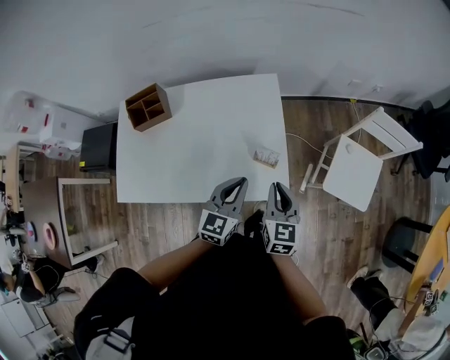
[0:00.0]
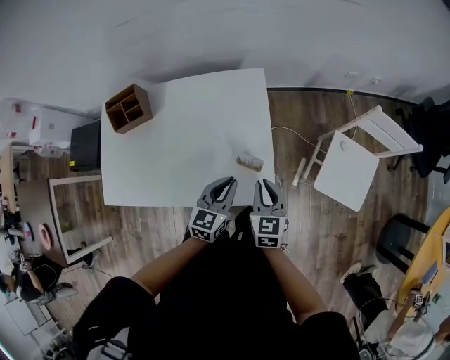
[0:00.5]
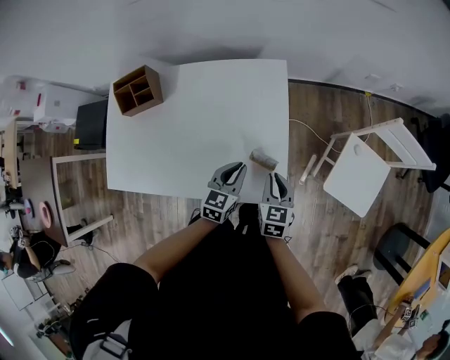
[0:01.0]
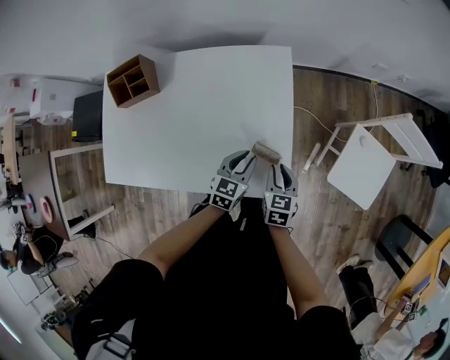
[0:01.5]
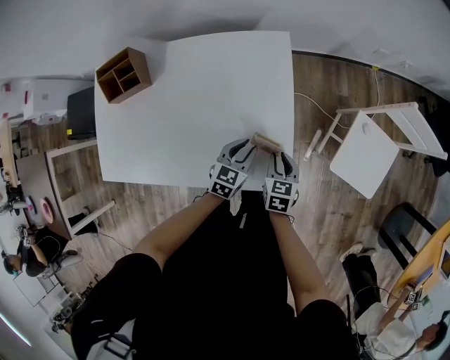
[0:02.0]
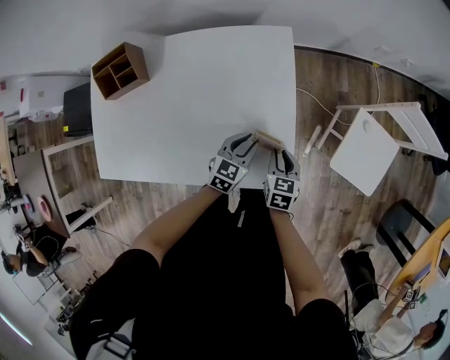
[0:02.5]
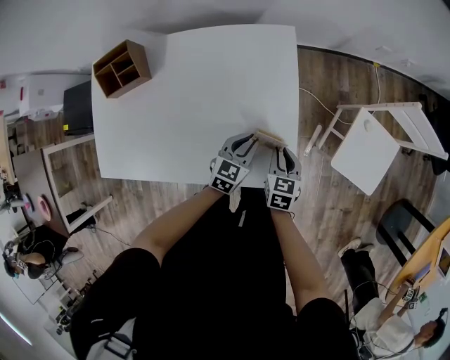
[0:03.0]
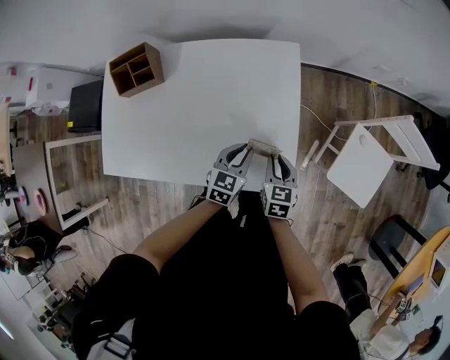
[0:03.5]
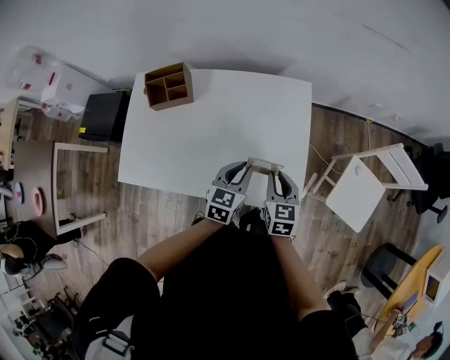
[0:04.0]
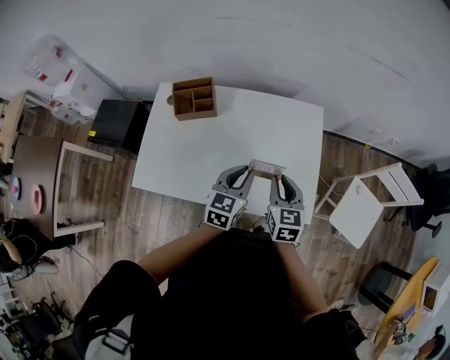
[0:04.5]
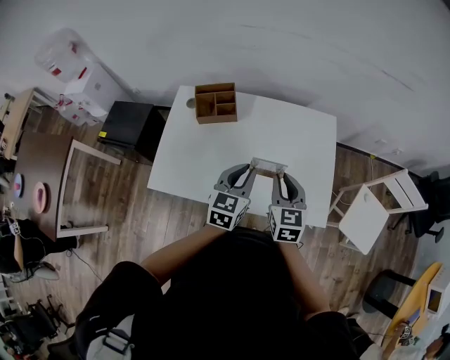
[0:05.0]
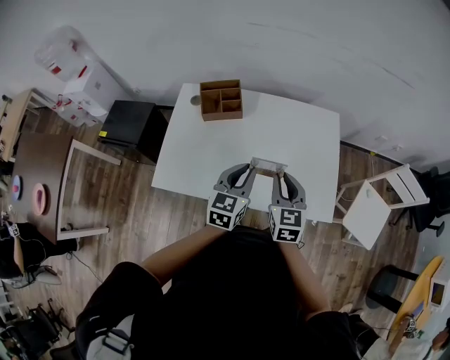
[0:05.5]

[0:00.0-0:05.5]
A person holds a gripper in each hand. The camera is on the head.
0:00.0 to 0:02.0: The left gripper travels downward and forward by some 25 cm, and turns by about 20 degrees. The right gripper moves downward, approximately 20 cm, and swivels roughly 20 degrees.
0:02.0 to 0:03.5: Both grippers move upward, roughly 5 cm.
0:03.5 to 0:05.5: Both grippers travel together to the left and upward, some 35 cm. The left gripper swivels about 20 degrees, while the right gripper turns by about 20 degrees.

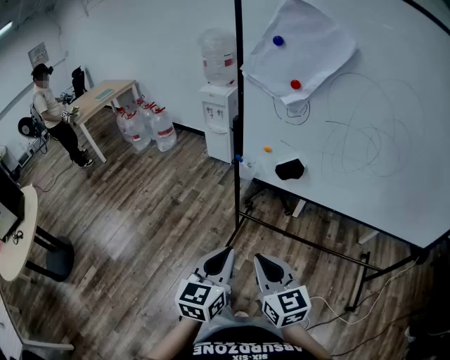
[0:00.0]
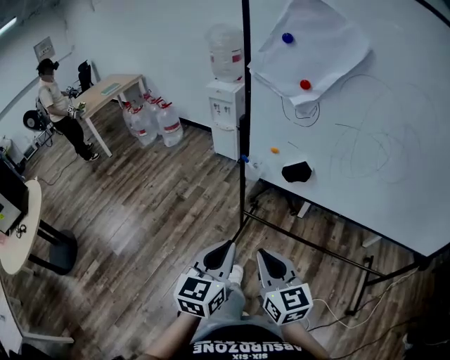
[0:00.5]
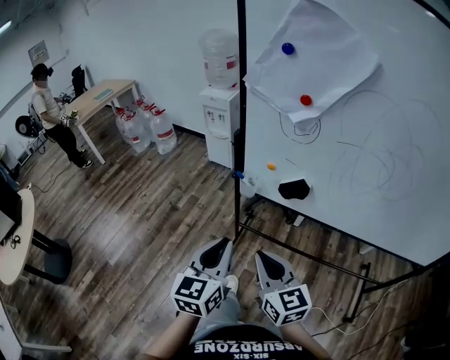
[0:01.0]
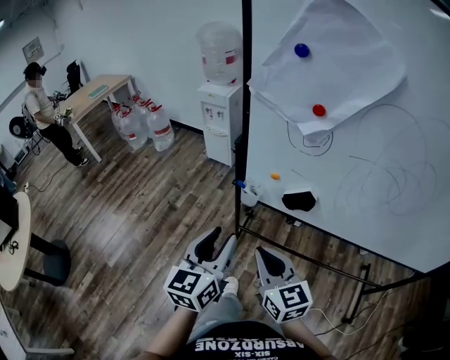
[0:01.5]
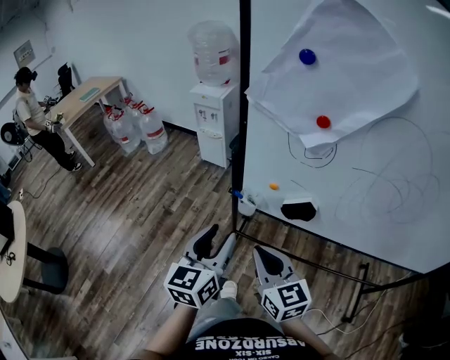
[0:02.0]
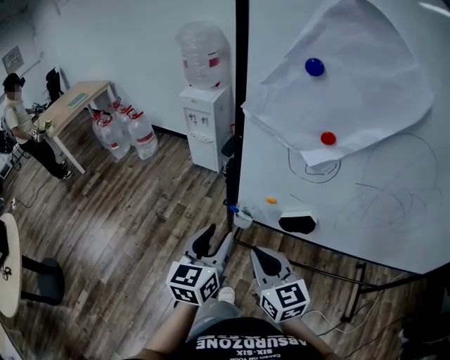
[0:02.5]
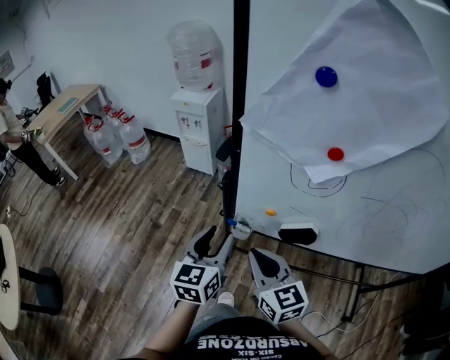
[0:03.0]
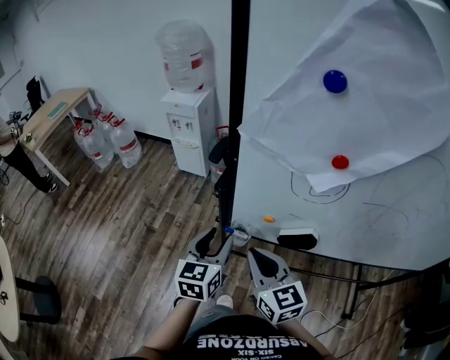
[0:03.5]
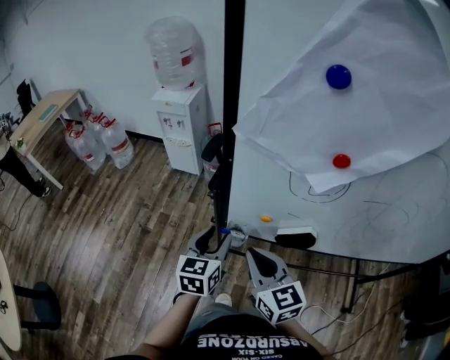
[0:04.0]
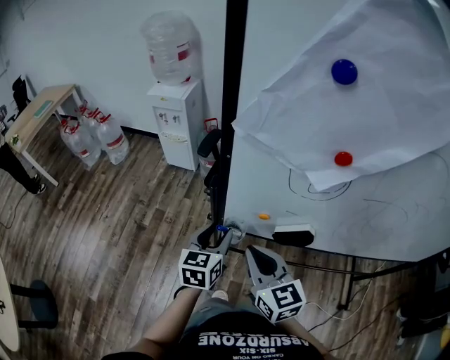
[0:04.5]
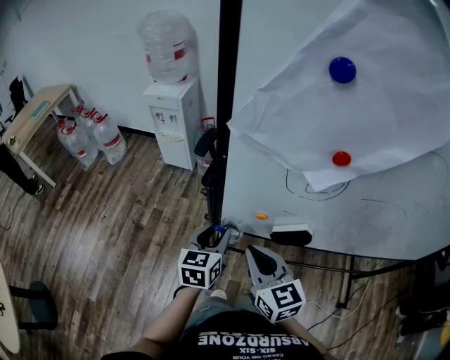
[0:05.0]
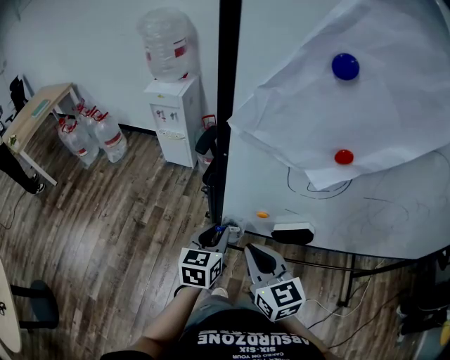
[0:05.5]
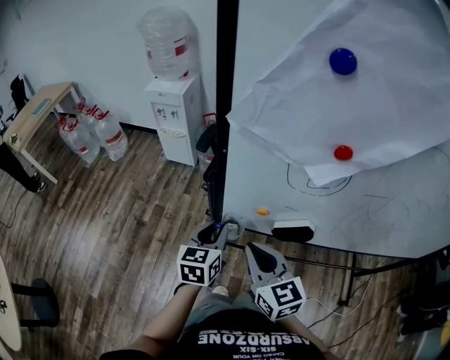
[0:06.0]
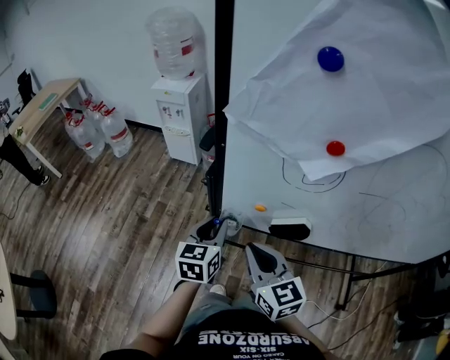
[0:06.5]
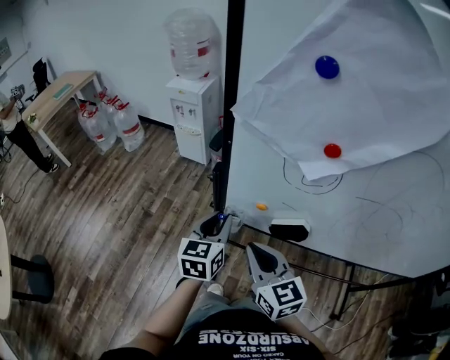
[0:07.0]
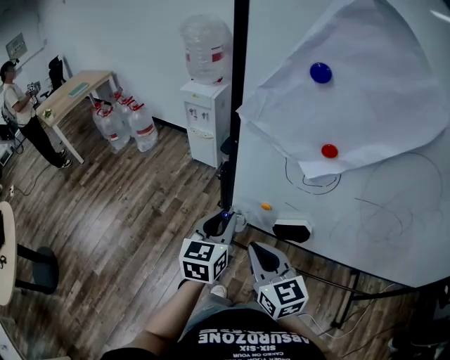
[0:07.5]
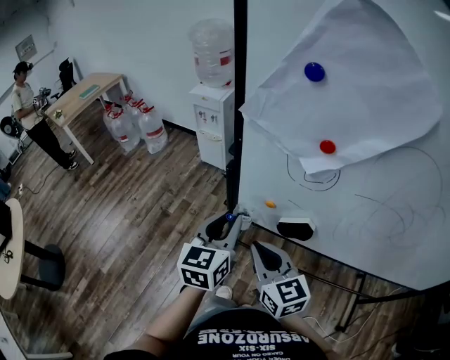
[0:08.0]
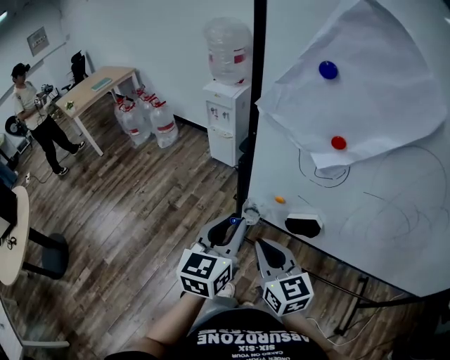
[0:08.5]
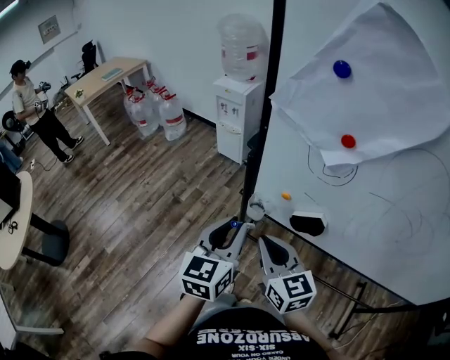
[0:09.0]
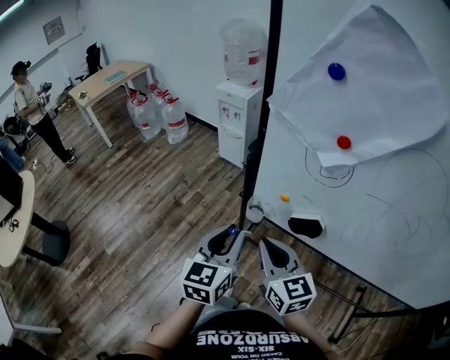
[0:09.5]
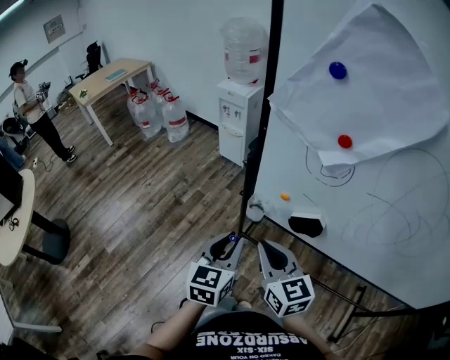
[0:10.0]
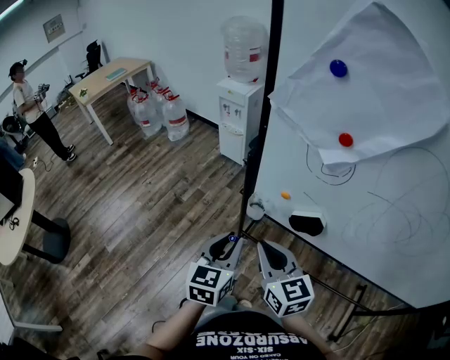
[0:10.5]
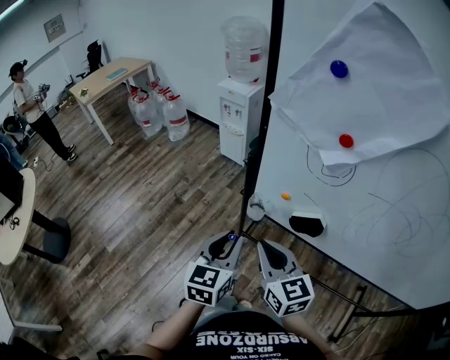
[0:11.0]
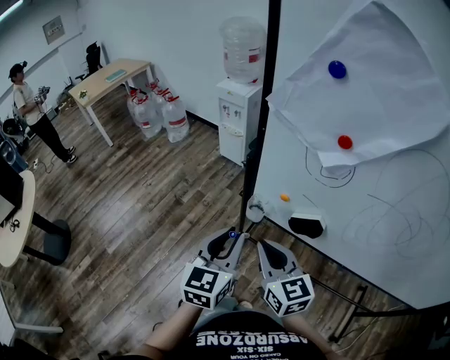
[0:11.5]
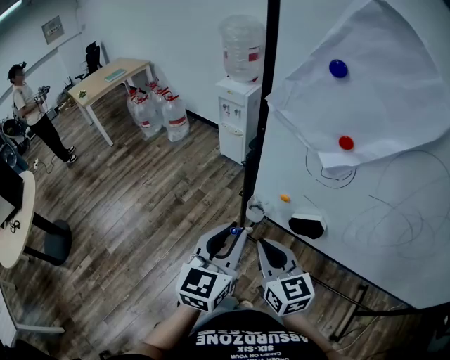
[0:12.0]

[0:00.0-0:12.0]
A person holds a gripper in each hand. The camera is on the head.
0:00.0 to 0:02.0: The two grippers go roughly 20 cm forward. The left gripper opens its fingers.
0:02.0 to 0:04.0: The right gripper heads forward, covering about 15 cm, while the left gripper shifts some 20 cm forward and downward.
0:04.0 to 0:06.0: The grippers make only small movements.
0:06.0 to 0:08.0: The right gripper heads backward, covering roughly 5 cm. The left gripper heads upward and backward, covering some 15 cm.
0:08.0 to 0:10.0: The left gripper goes about 10 cm backward and downward.
0:10.0 to 0:12.0: The left gripper shifts about 10 cm upward.

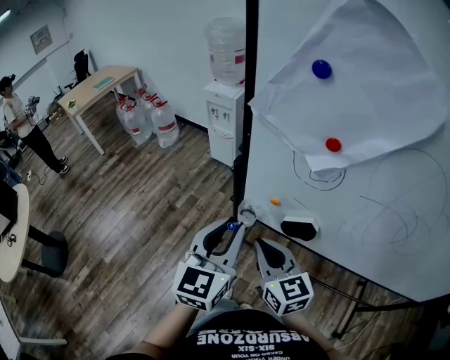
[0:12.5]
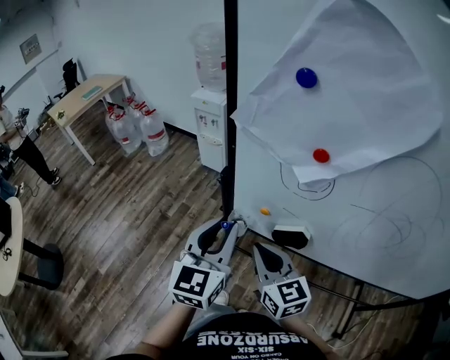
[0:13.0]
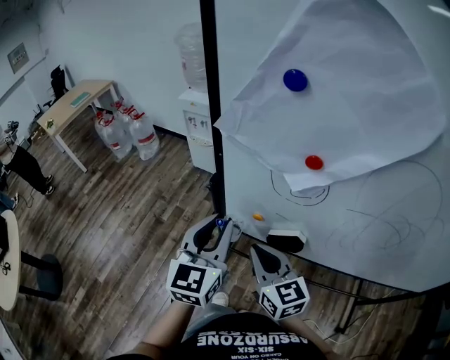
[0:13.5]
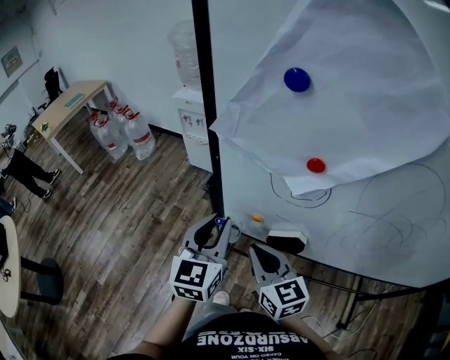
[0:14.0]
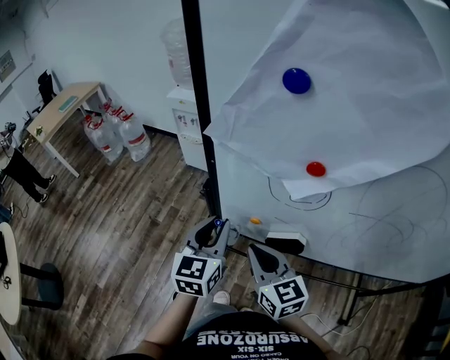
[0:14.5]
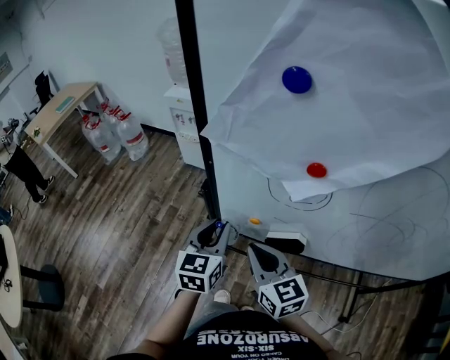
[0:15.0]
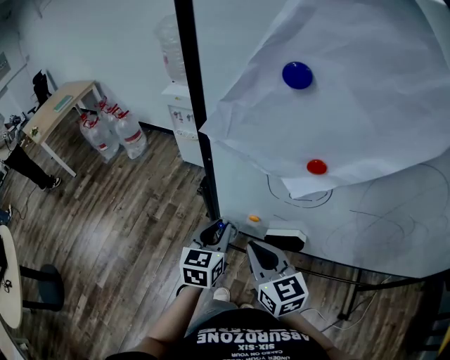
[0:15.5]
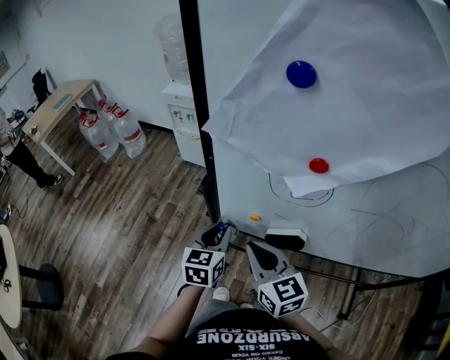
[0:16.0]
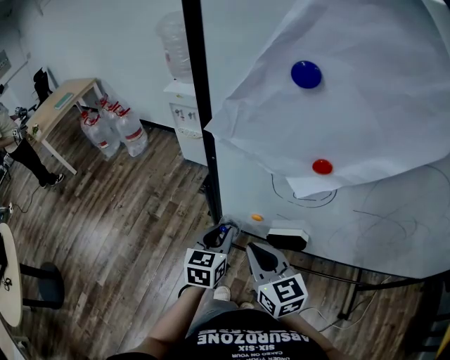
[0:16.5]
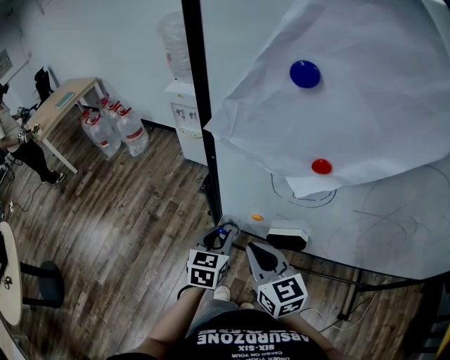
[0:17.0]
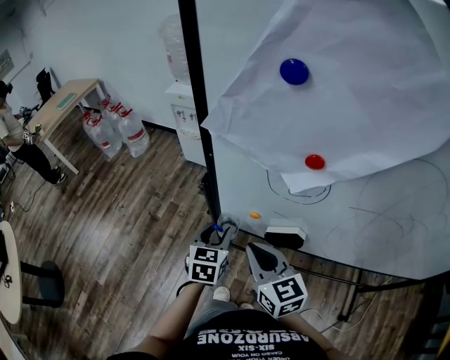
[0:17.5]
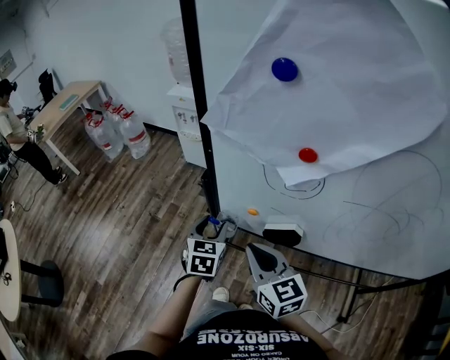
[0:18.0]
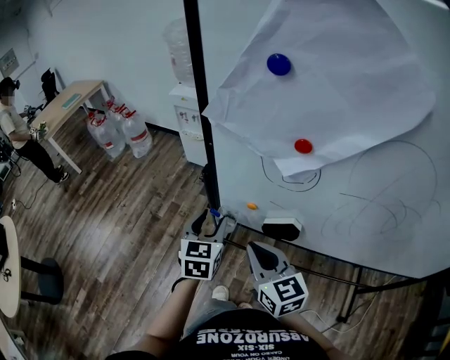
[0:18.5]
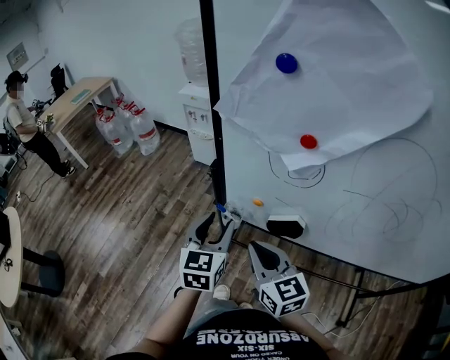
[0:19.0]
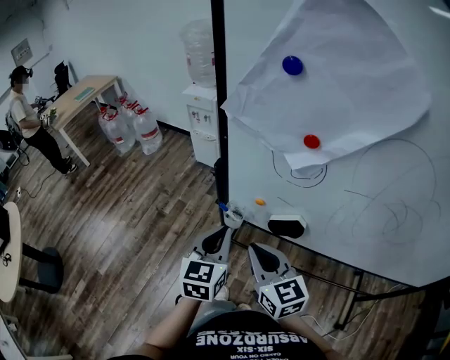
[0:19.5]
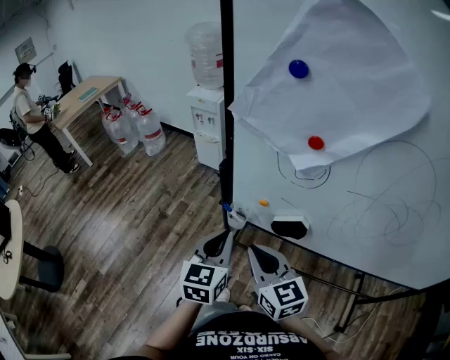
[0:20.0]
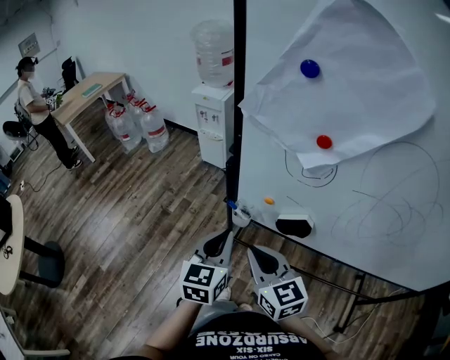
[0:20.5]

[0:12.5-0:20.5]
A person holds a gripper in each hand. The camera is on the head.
0:12.5 to 0:14.5: The left gripper shifts some 15 cm forward and downward. The right gripper travels forward by about 5 cm.
0:14.5 to 0:16.5: The left gripper goes about 10 cm downward.
0:16.5 to 0:18.5: The left gripper shifts by some 5 cm, and opens up.
0:18.5 to 0:20.5: The right gripper shifts by roughly 5 cm; the left gripper moves backward, approximately 10 cm, and closes.

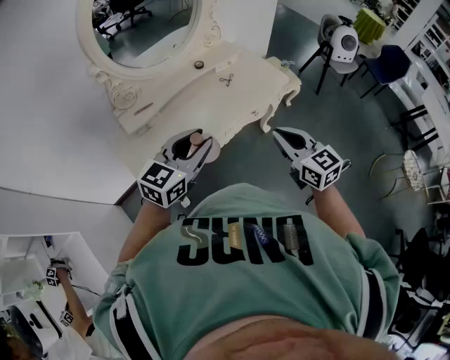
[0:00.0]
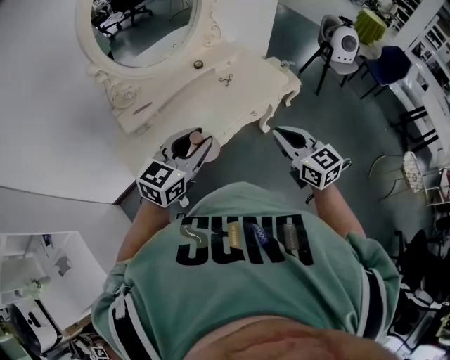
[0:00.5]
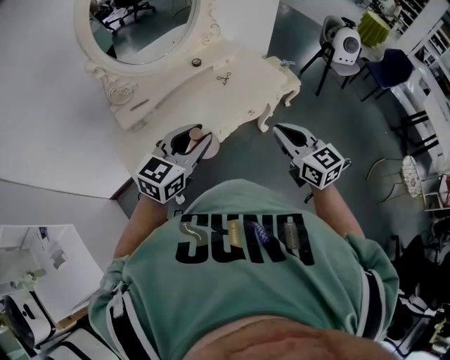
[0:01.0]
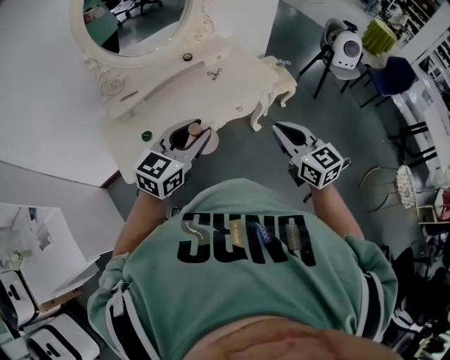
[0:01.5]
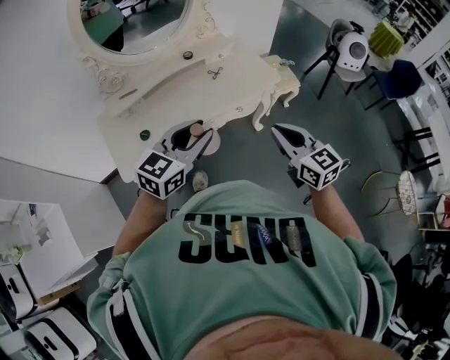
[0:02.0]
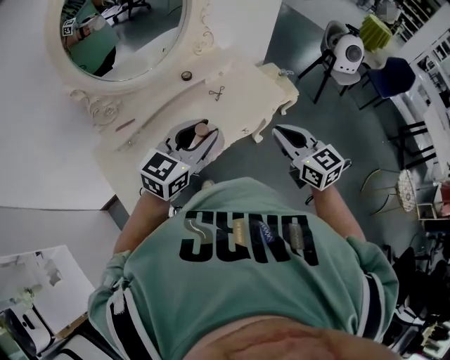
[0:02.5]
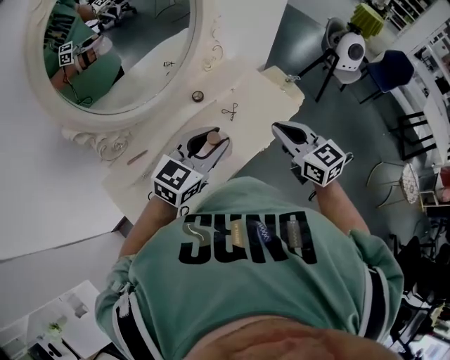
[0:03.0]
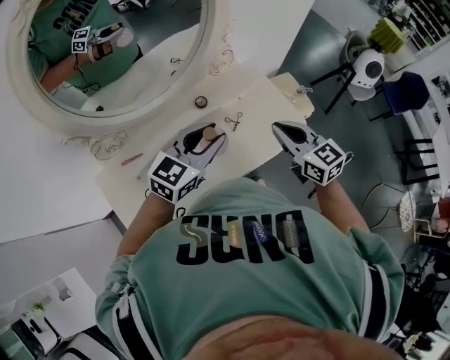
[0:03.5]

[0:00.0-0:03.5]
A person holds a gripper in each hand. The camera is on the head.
0:00.0 to 0:02.0: Both grippers move to the right, about 10 cm.
0:02.0 to 0:03.5: The right gripper is displaced forward and to the left by approximately 40 cm; the left gripper goes approximately 35 cm forward.
